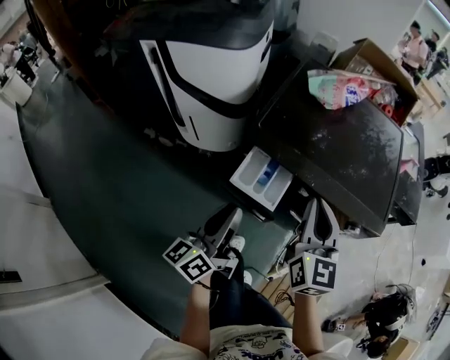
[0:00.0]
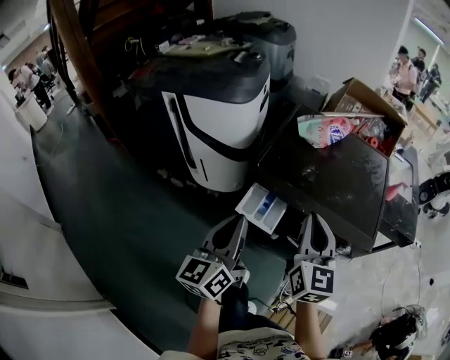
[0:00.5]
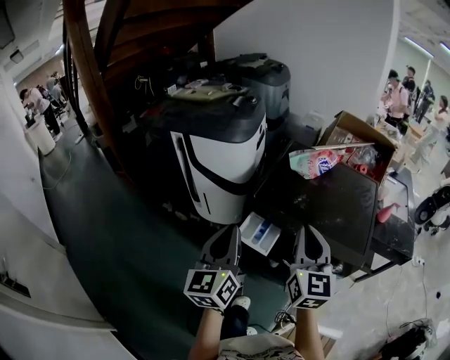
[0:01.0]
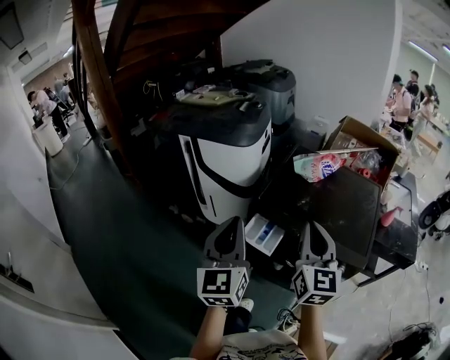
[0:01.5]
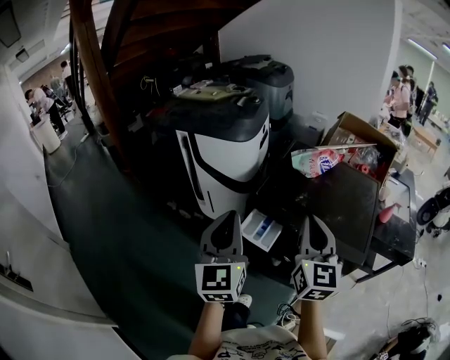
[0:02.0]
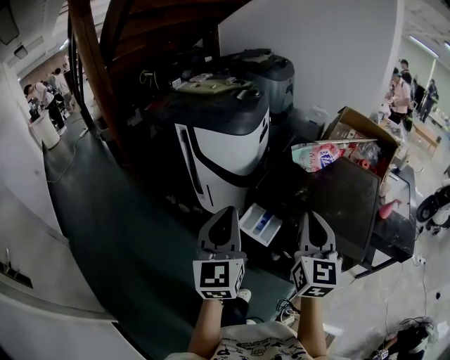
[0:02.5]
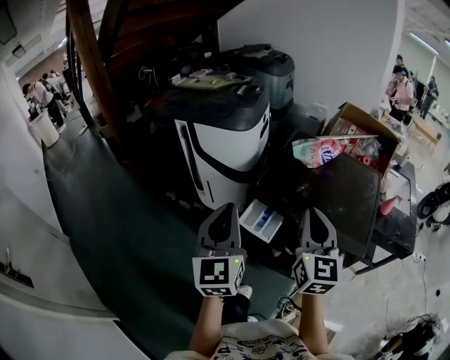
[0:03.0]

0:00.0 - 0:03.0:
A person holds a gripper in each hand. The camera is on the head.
0:00.0 - 0:01.5: Both grippers travel together upward, approximately 25 cm. The left gripper rolls clockwise, seen from behind, by roughly 50 degrees.
0:01.5 - 0:03.0: The grippers move only a little.

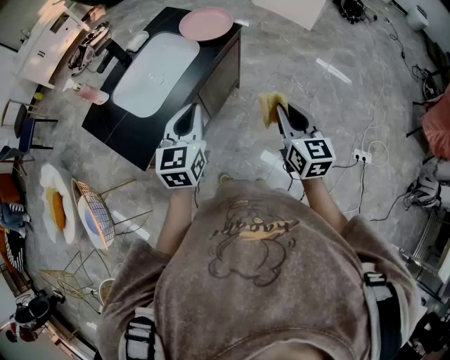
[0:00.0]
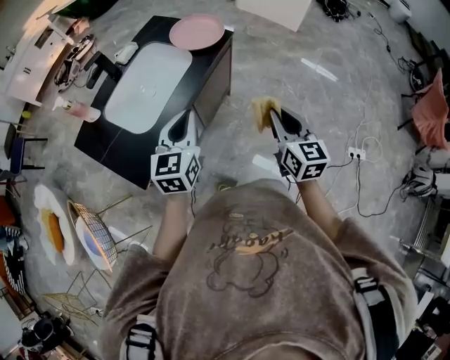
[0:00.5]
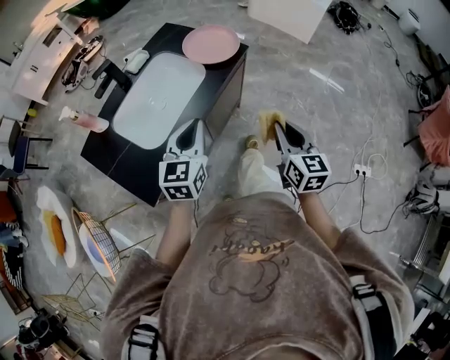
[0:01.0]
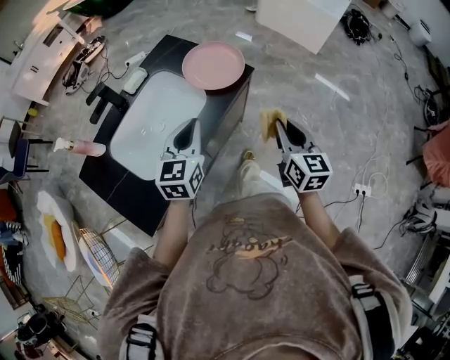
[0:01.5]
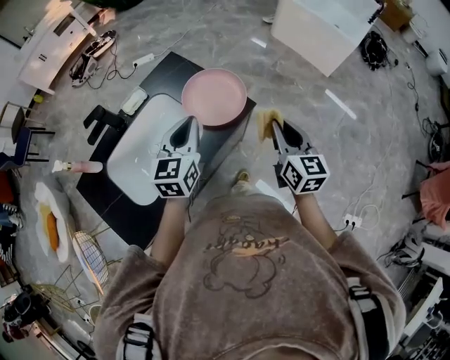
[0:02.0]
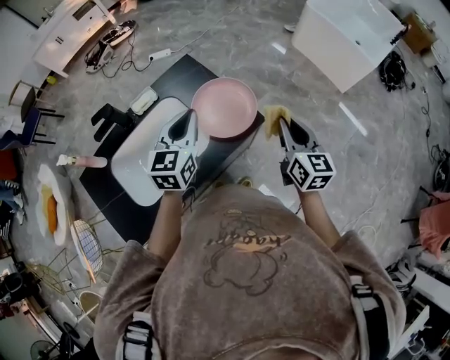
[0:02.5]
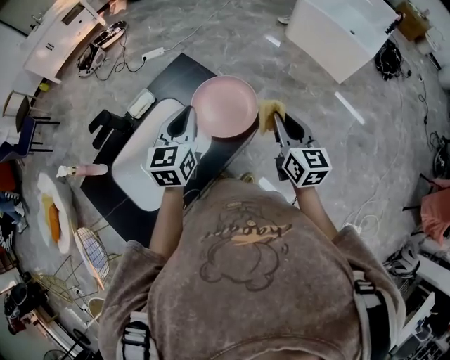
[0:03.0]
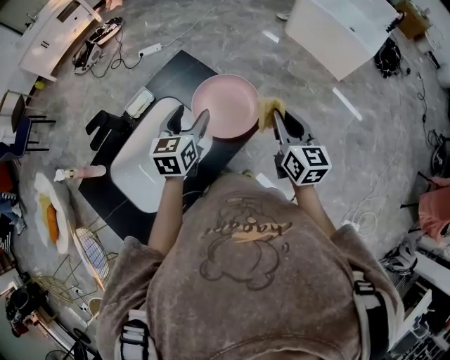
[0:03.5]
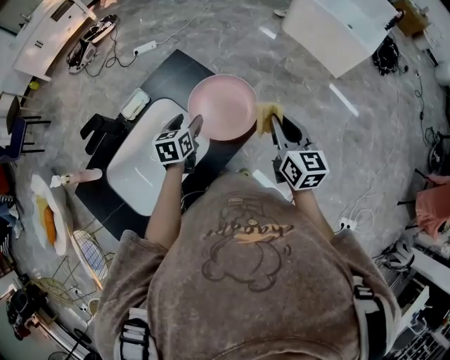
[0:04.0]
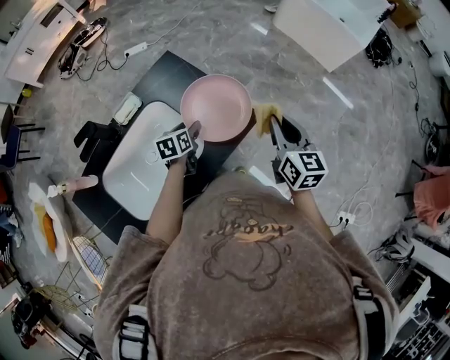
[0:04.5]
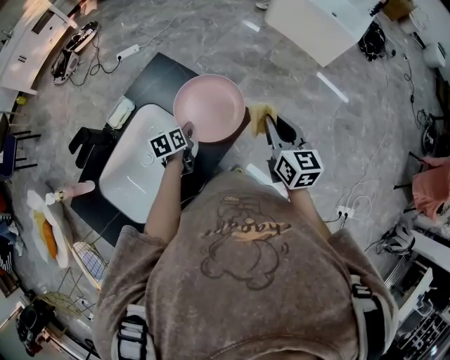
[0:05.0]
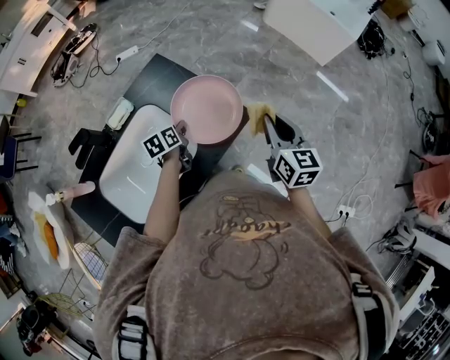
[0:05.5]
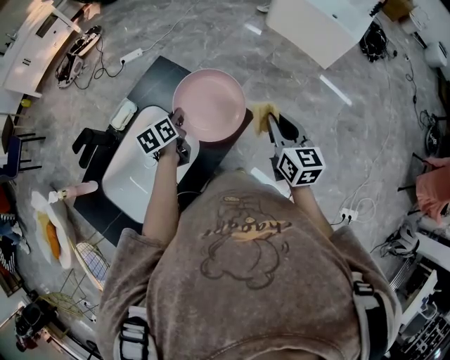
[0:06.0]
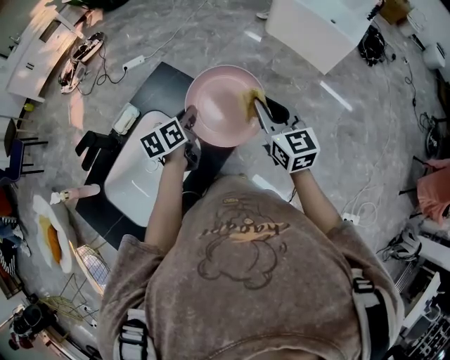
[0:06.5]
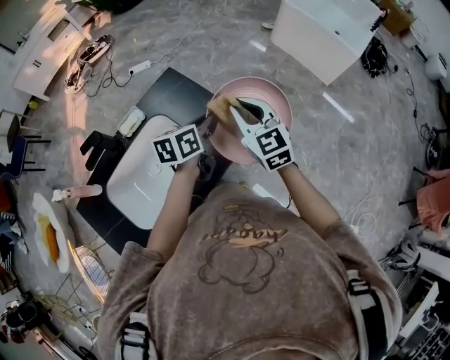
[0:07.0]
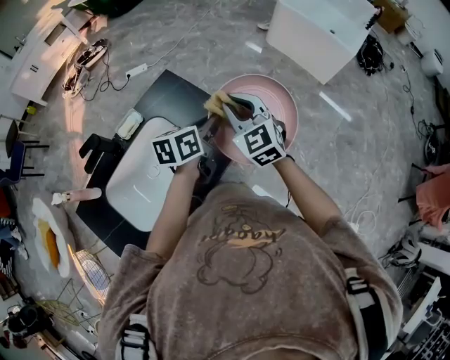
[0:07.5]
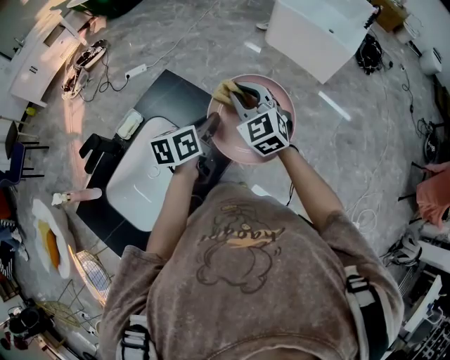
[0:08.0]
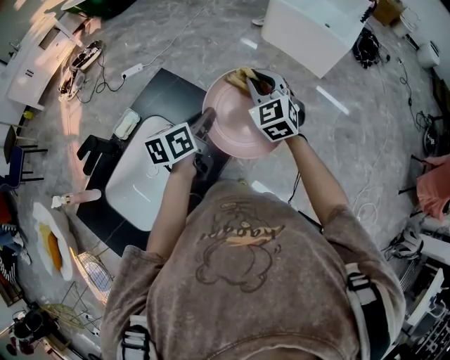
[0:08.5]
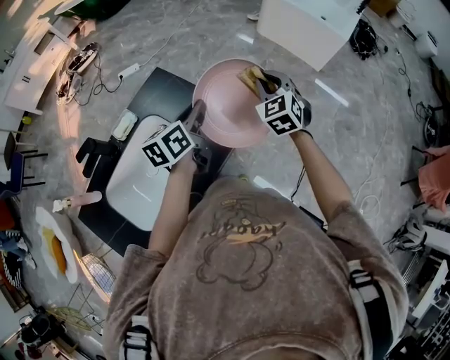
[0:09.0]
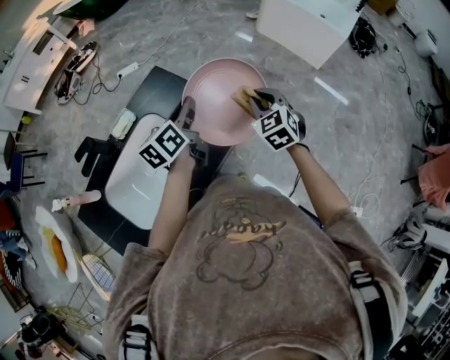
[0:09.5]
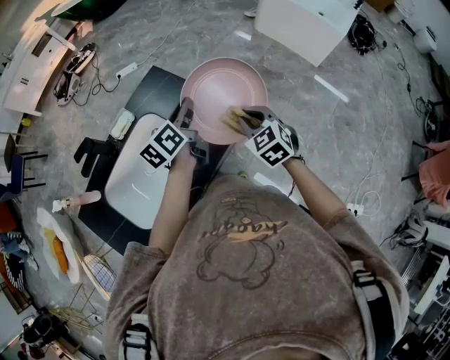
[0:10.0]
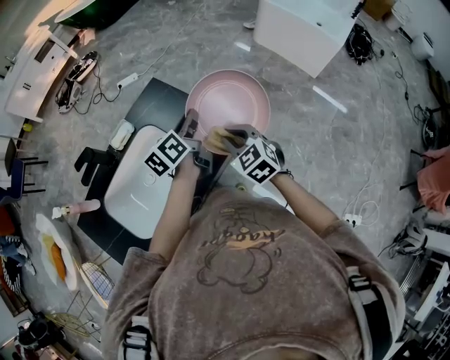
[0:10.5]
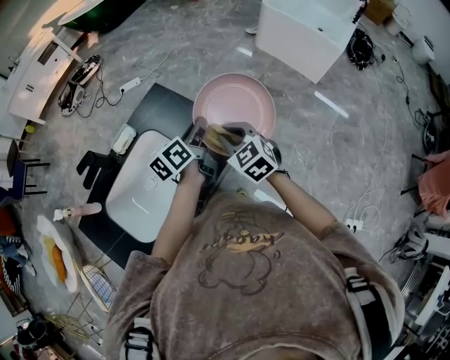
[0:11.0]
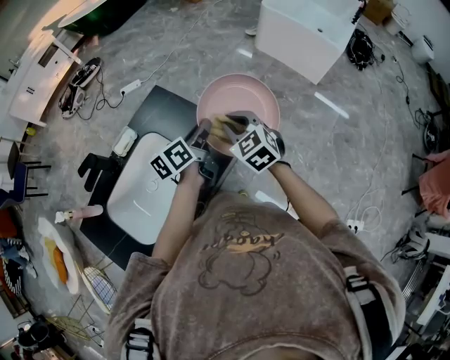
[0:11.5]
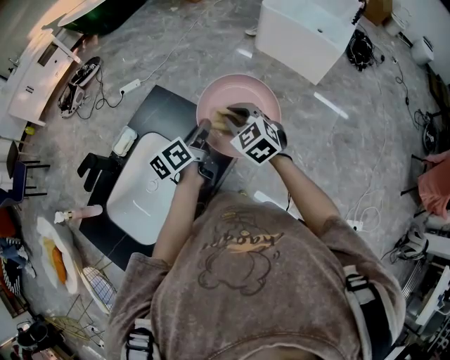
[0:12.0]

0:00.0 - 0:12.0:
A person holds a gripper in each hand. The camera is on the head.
0:00.0 - 0:02.0: Both grippers are carried forward, roughly 40 cm.
0:02.0 - 0:04.0: The left gripper heads downward and forward, covering approximately 20 cm, changes its angle by approximately 30 degrees, and opens; the right gripper goes about 10 cm forward.
0:04.0 - 0:06.0: The left gripper goes downward and returns, roughly 10 cm each way, and closes up.
0:06.0 - 0:08.0: The right gripper travels to the left, forward and upward by roughly 15 cm, and rotates around the line of its fingers by roughly 40 degrees, counterclockwise from behind. The left gripper is displaced upward and to the right by some 20 cm, and changes its angle by about 20 degrees.
0:08.0 - 0:10.0: The left gripper travels to the left by approximately 5 cm, and changes its angle by roughly 20 degrees, while the right gripper heads downward, backward and to the right, covering some 15 cm, and swivels some 20 degrees.
0:10.0 - 0:12.0: The right gripper is displaced forward and upward by about 10 cm. Meanwhile the left gripper moves to the right, roughly 5 cm.

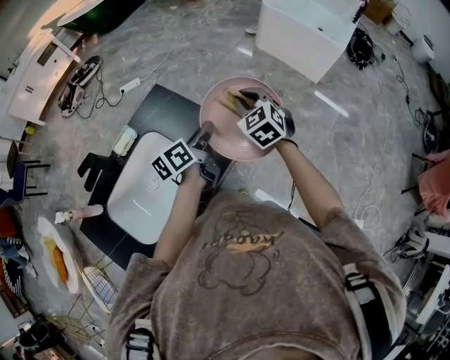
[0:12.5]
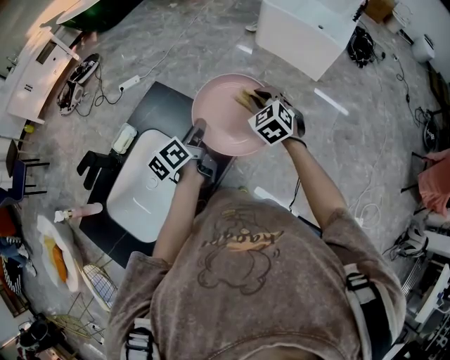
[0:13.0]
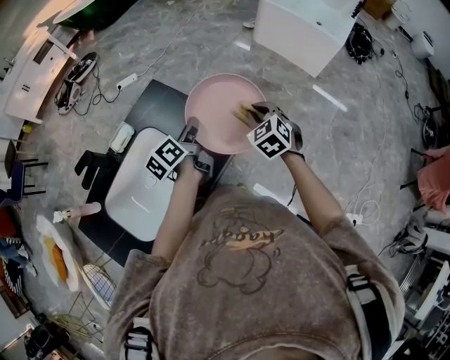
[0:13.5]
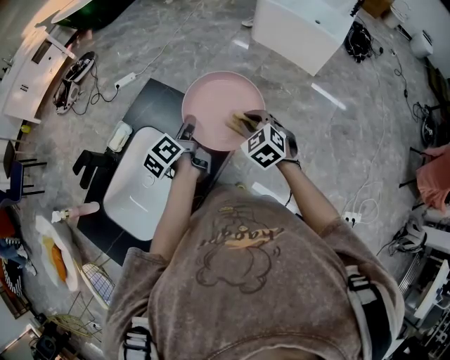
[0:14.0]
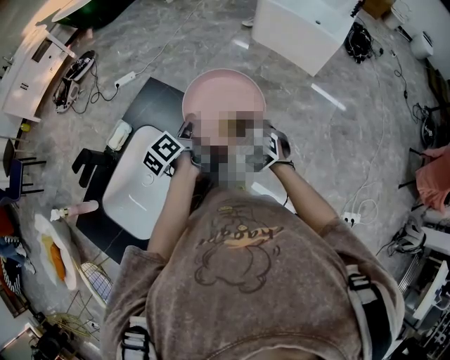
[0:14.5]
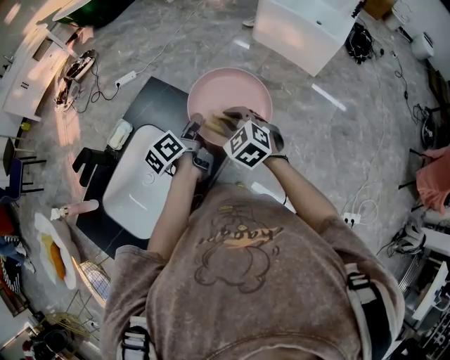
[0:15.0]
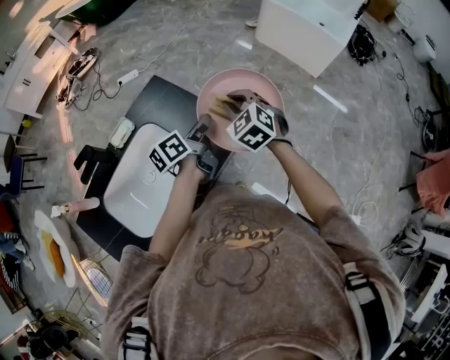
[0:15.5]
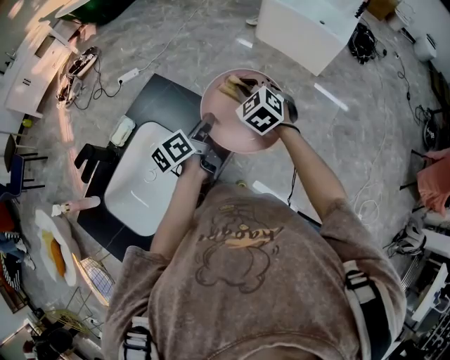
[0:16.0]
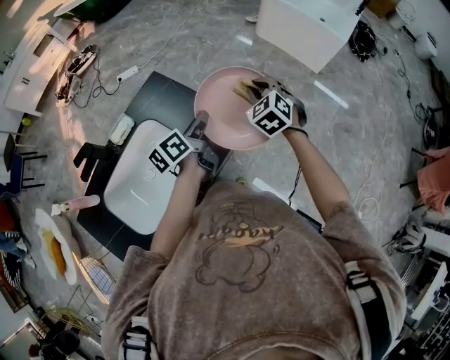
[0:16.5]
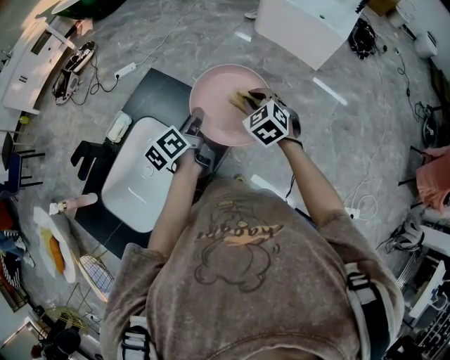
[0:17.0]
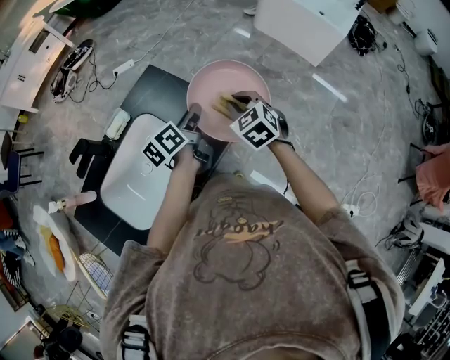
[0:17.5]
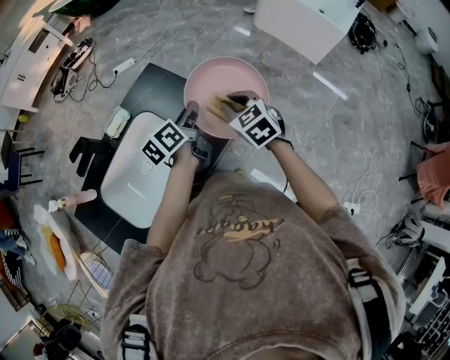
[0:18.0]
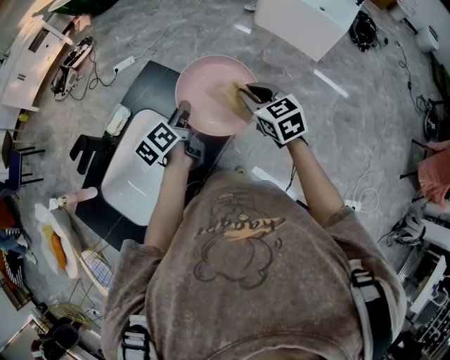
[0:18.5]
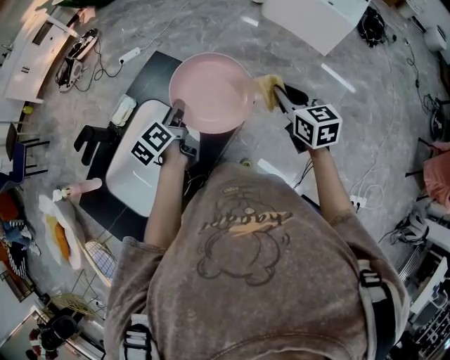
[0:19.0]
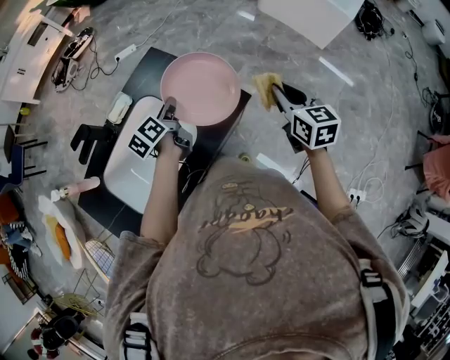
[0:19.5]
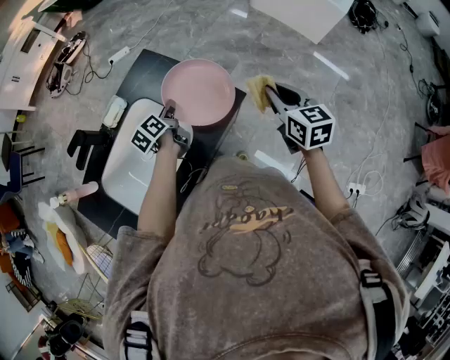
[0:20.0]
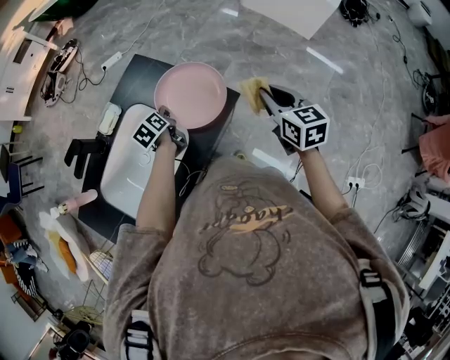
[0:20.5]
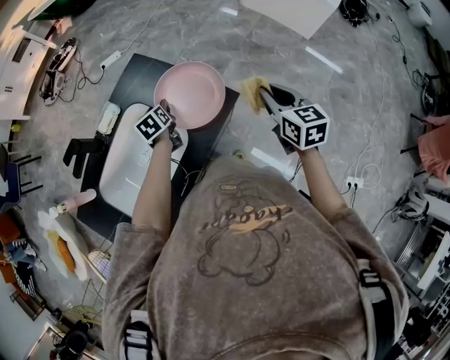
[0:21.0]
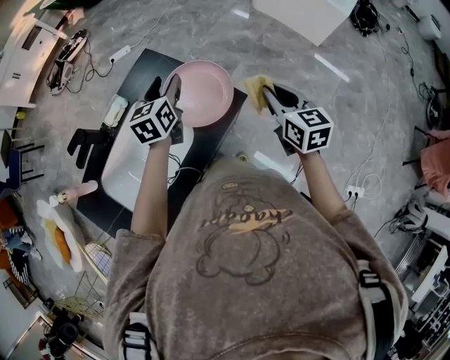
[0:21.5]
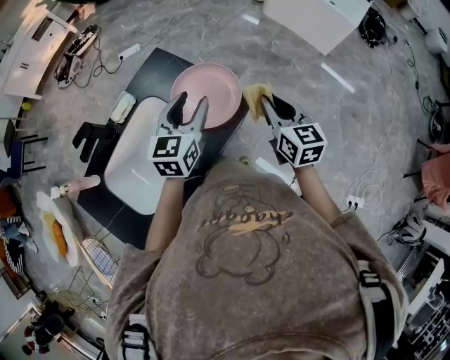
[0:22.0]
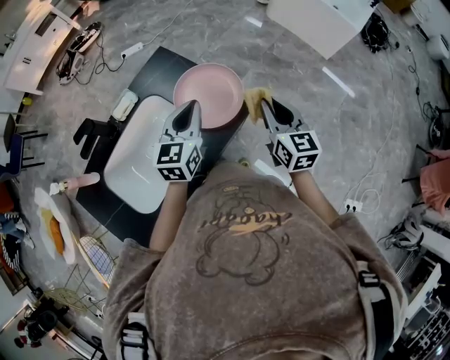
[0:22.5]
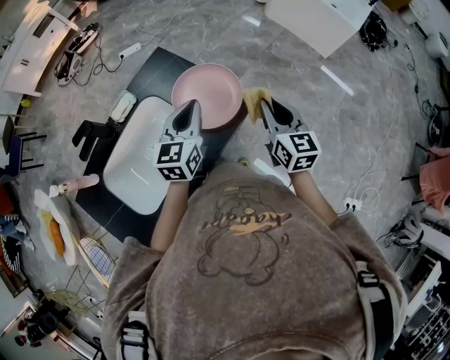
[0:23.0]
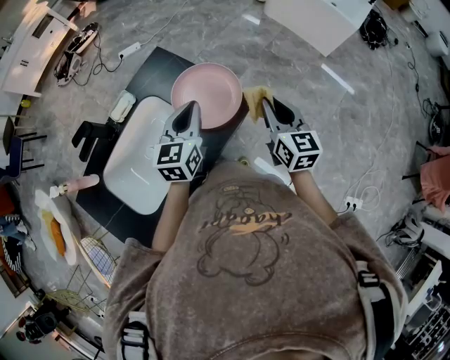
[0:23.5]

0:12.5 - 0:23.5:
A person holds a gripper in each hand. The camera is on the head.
0:12.5 - 0:14.5: The right gripper is displaced backward and downward by some 10 cm; the left gripper changes place by roughly 5 cm.
0:14.5 - 0:16.0: The right gripper travels forward and upward by approximately 10 cm.
0:16.0 - 0:18.0: The right gripper goes about 5 cm backward, and turns by about 20 degrees.
0:18.0 - 0:20.0: The right gripper moves to the right, about 10 cm, and turns by approximately 30 degrees, while the left gripper shifts about 15 cm downward and to the left.
0:20.0 - 0:21.5: The left gripper shifts approximately 15 cm upward, turns by some 40 degrees, and opens.
0:21.5 - 0:23.5: The left gripper goes about 10 cm backward, and closes.
